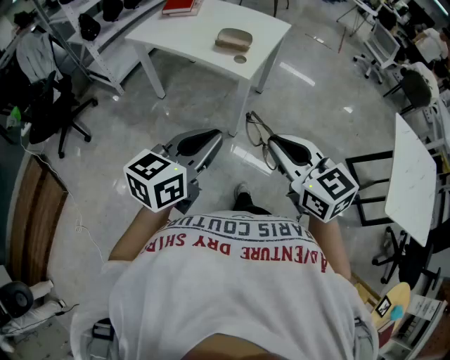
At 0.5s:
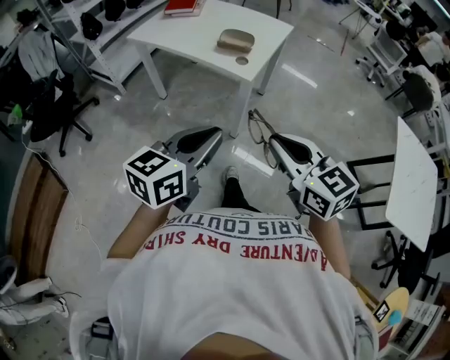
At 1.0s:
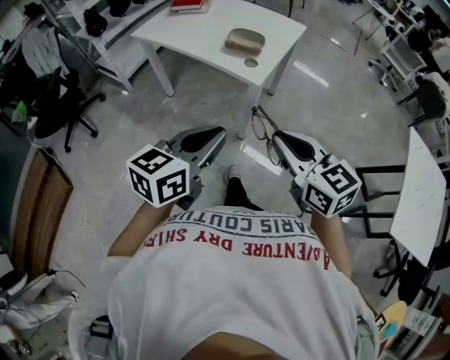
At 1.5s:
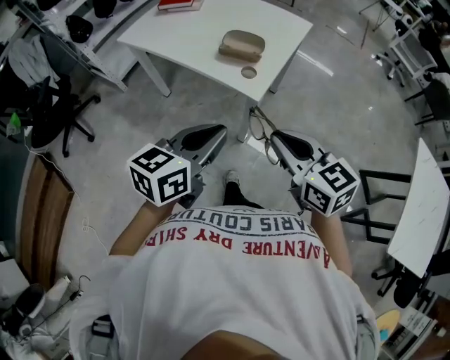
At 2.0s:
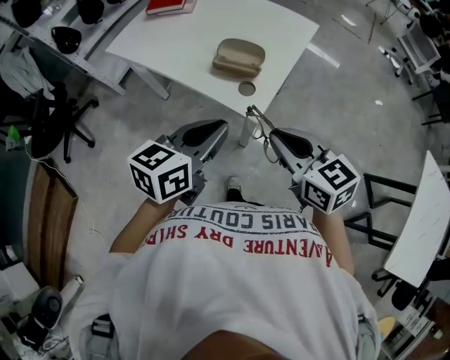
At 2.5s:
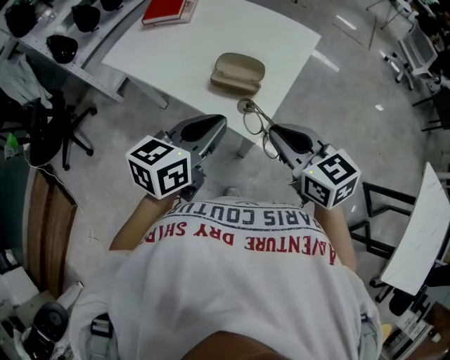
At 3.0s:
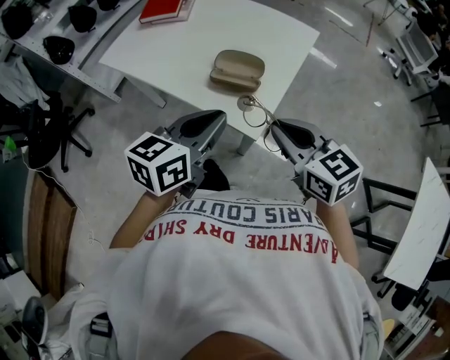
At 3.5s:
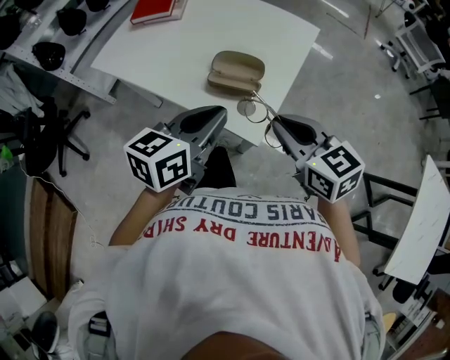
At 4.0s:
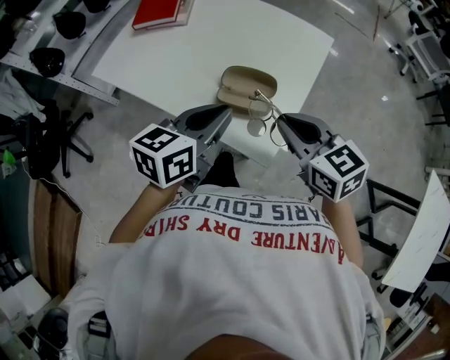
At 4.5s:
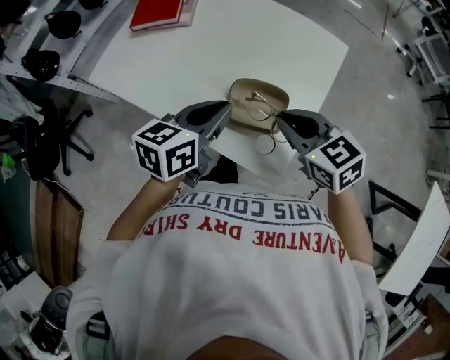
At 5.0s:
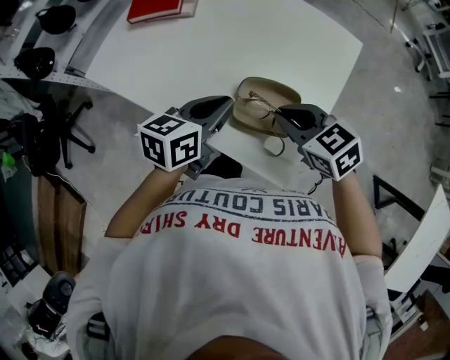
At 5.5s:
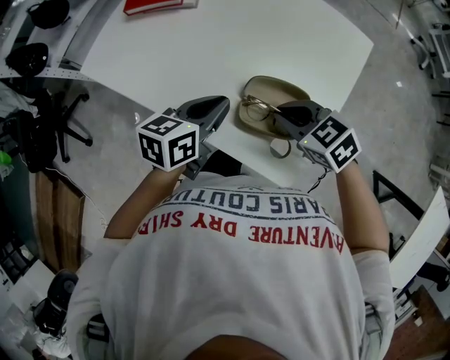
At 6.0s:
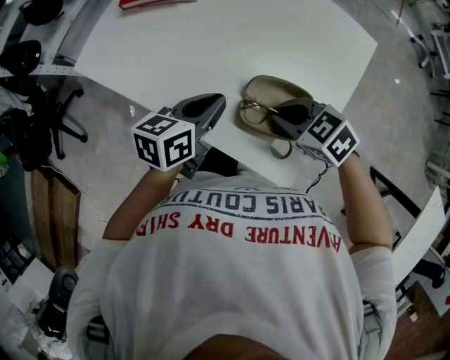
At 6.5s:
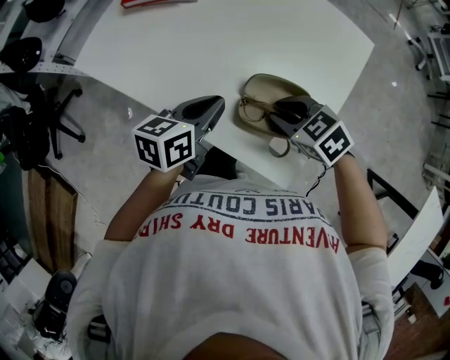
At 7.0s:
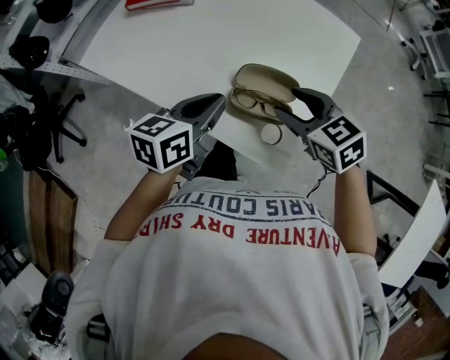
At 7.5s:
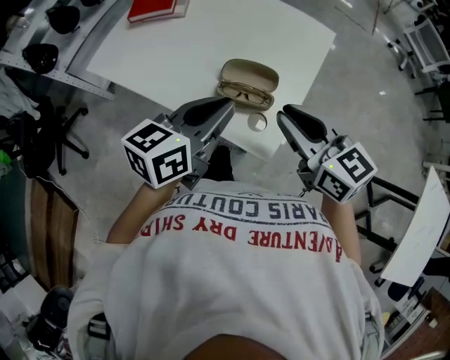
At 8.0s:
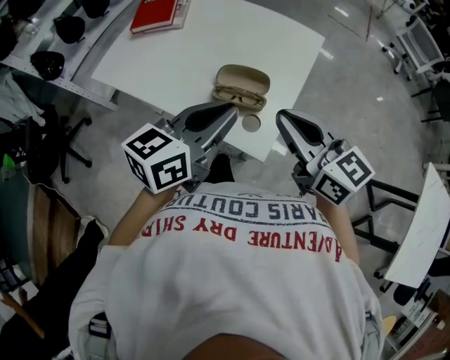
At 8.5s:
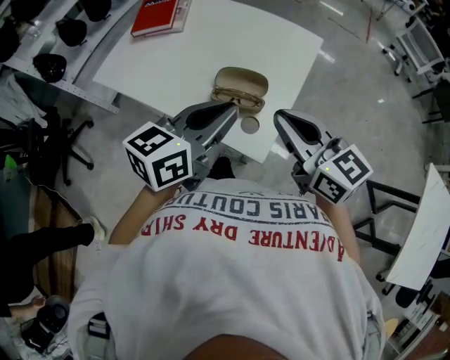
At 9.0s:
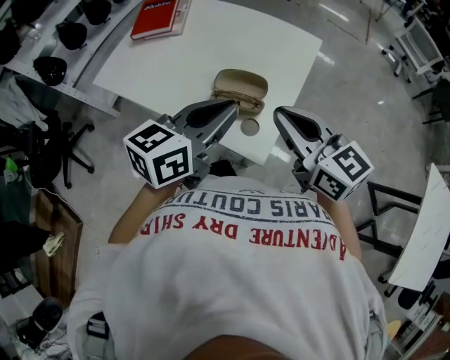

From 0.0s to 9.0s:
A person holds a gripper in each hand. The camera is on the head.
From 0.0s to 2.0s: The two grippers go about 30 cm forward.
From 2.0s to 4.5s: The two grippers go about 25 cm forward.
From 4.5s to 7.0s: The two grippers go some 5 cm downward. The right gripper opens its fingers.
From 7.0s to 9.0s: The left gripper is displaced upward, to the right and backward by roughly 20 cm, and turns by some 20 degrees; the right gripper is displaced upward and backward by roughly 20 cm, tips its fingers upward by approximately 30 degrees, and closes up.

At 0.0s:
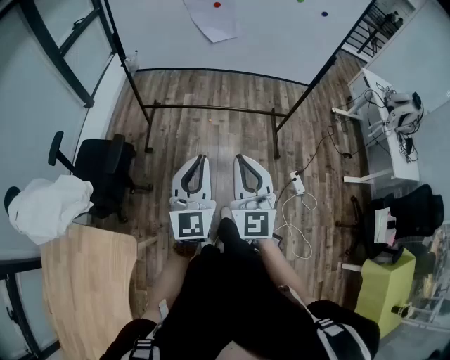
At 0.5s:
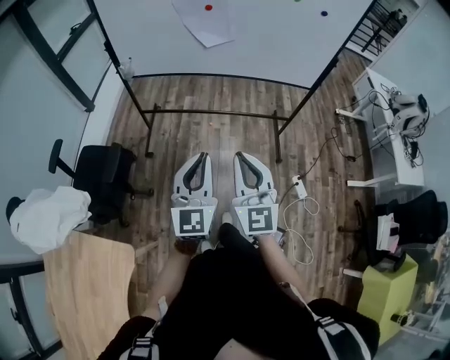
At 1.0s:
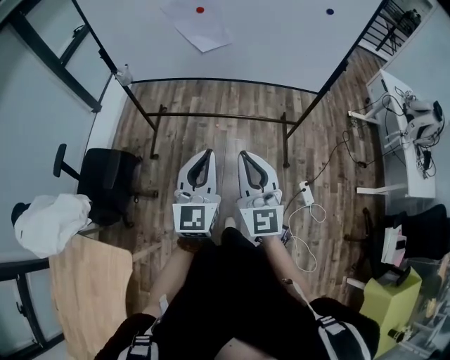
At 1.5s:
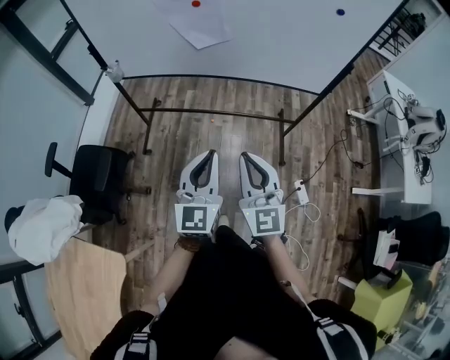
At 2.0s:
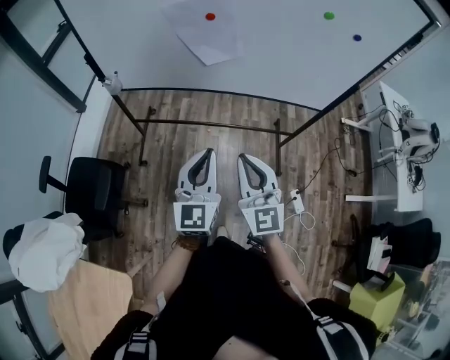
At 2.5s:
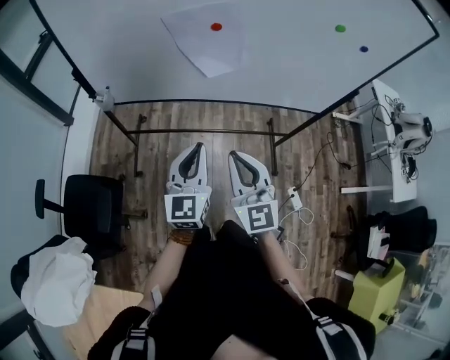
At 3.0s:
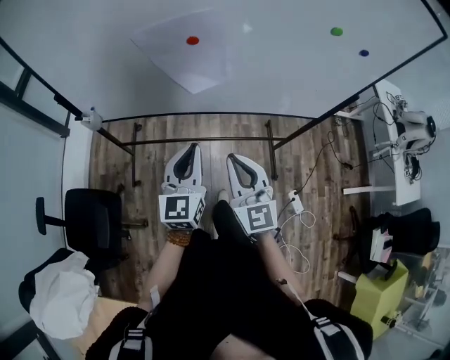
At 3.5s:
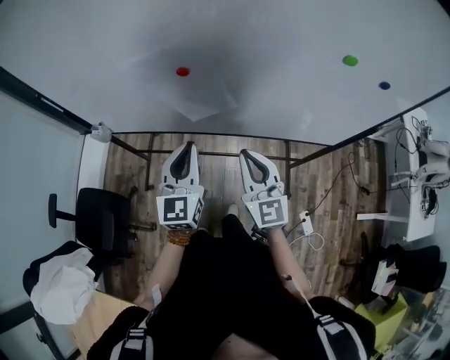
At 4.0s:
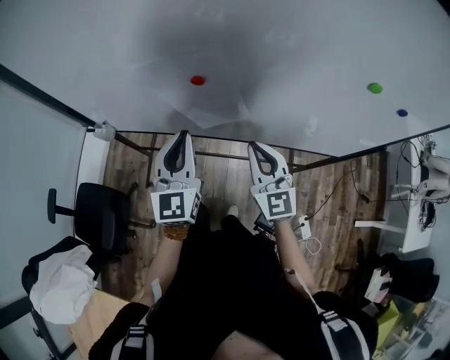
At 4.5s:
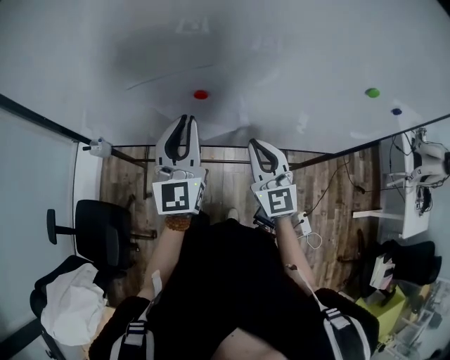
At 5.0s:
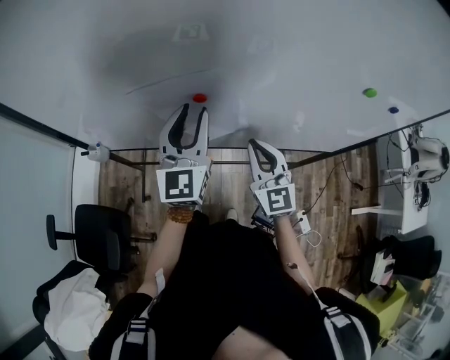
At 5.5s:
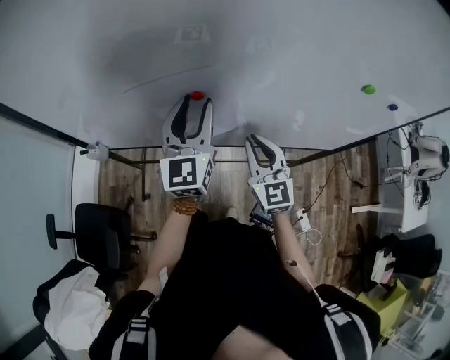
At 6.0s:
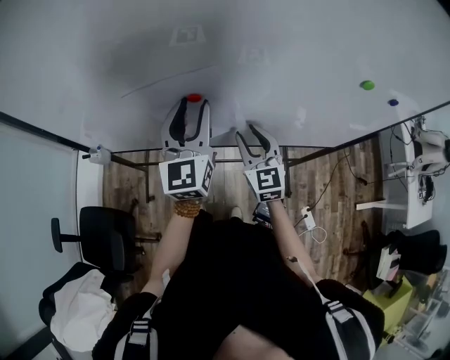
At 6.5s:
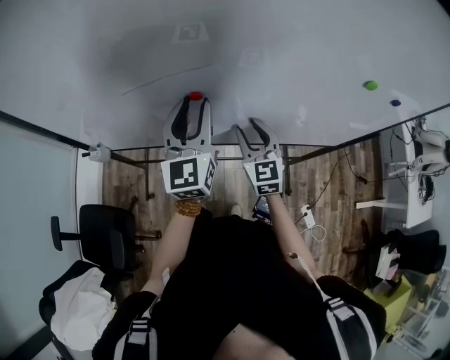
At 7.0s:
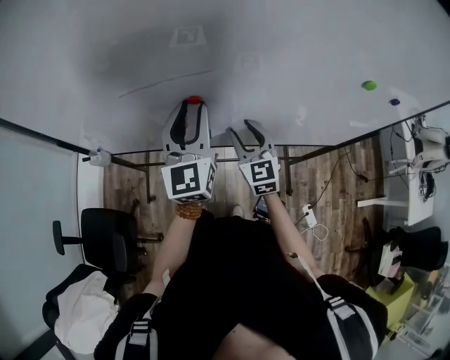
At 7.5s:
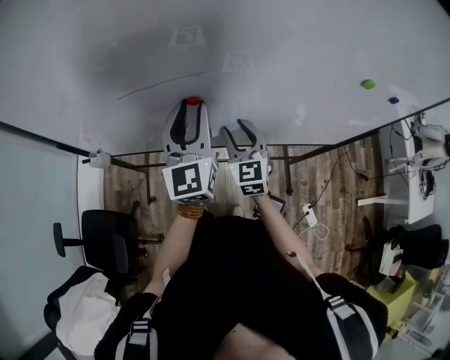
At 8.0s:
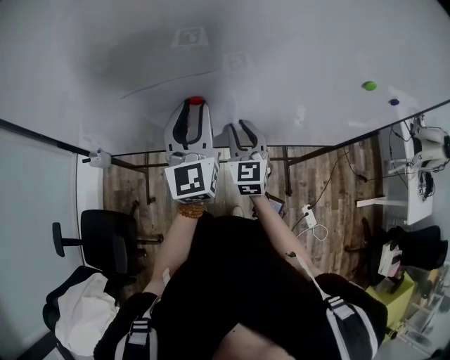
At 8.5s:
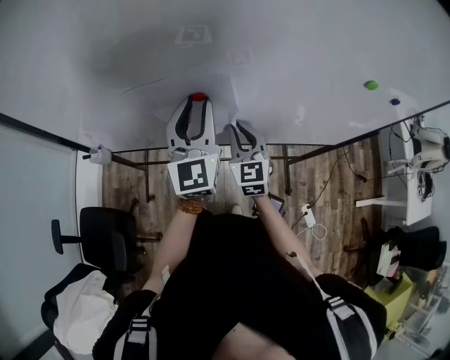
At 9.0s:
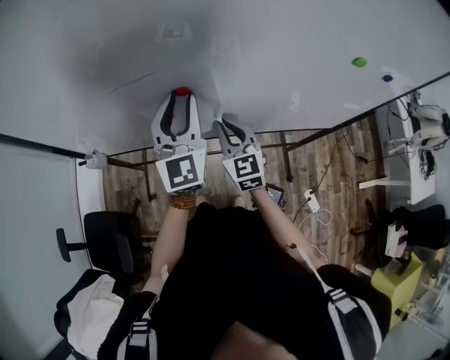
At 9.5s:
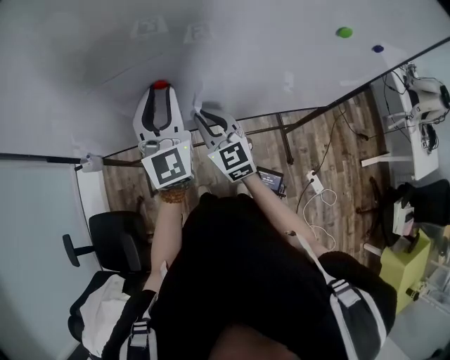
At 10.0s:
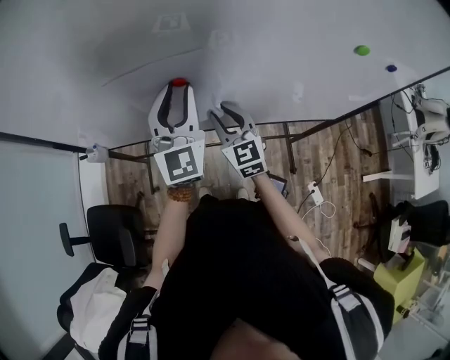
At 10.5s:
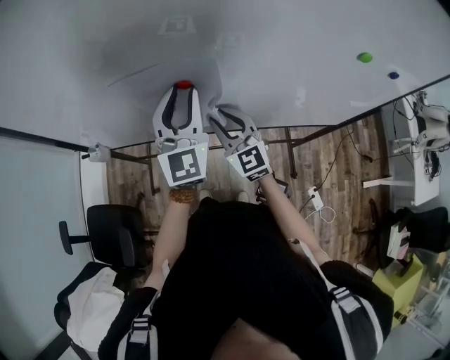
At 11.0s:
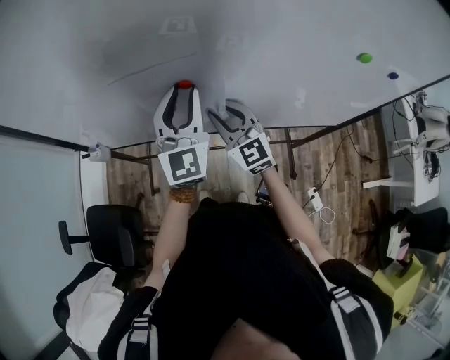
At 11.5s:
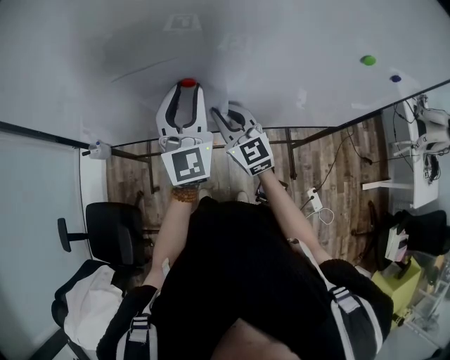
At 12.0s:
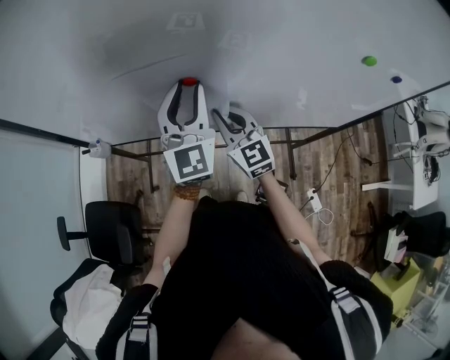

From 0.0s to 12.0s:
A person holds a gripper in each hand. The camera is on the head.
From 0.0s to 2.0s: Both grippers travel together forward, roughly 25 cm.
From 2.0s to 4.0s: Both grippers move forward, some 30 cm.
From 4.0s to 6.0s: The two grippers go some 10 cm forward. The left gripper opens; the right gripper opens up.
From 6.0s to 8.0s: The grippers make only small movements.
From 8.0s to 10.0s: The grippers move only a little.
From 10.0s to 12.0s: The right gripper closes.

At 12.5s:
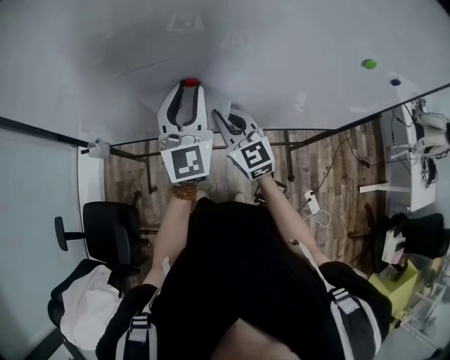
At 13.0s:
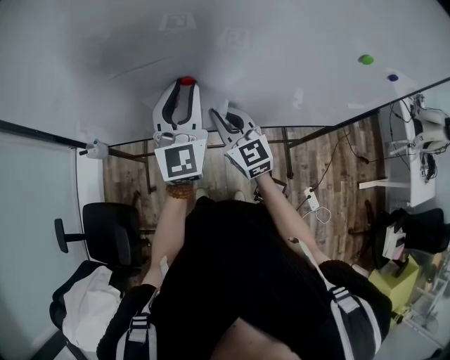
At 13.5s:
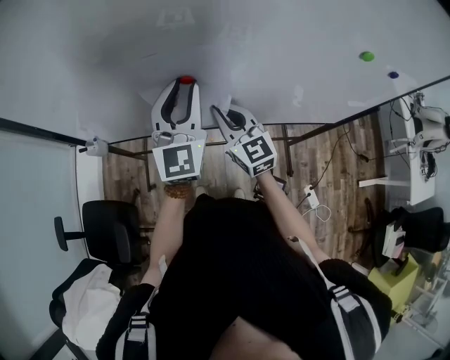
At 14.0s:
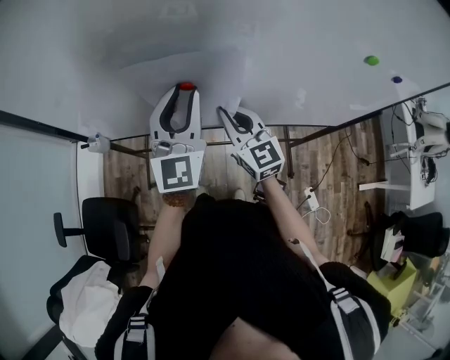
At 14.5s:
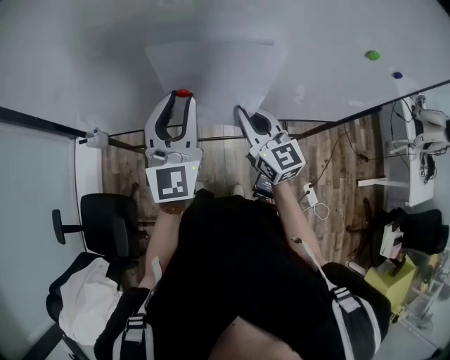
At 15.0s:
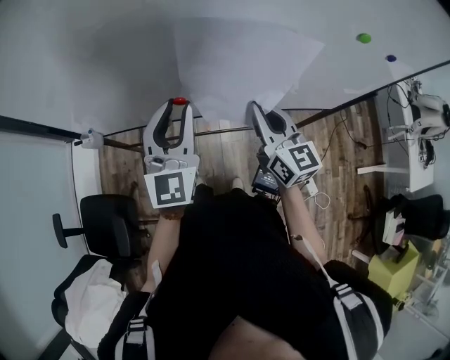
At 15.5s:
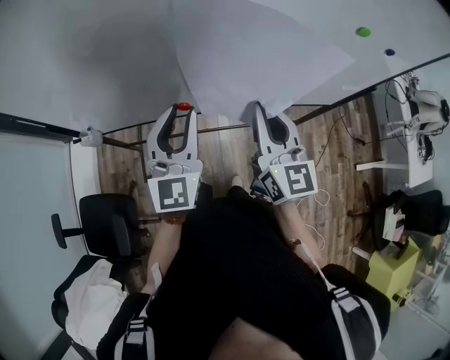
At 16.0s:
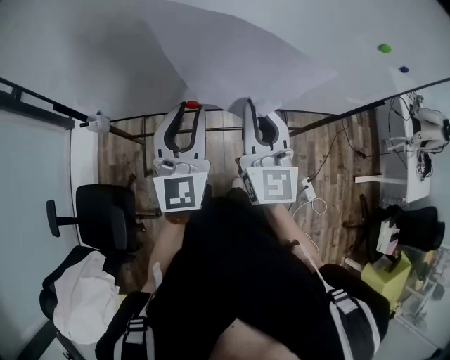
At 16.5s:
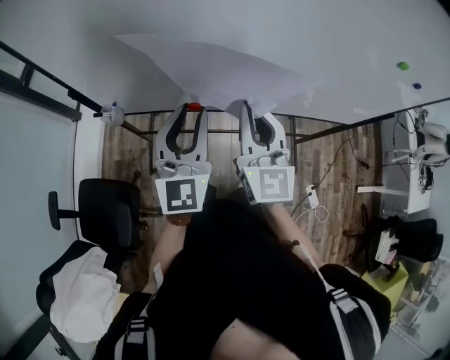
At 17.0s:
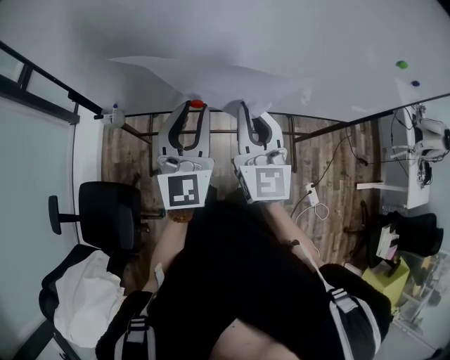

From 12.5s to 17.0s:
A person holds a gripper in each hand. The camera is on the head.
From 12.5s to 14.5s: The right gripper ends up roughly 5 cm from where it was. The left gripper is displaced backward by some 5 cm.
From 14.5s to 17.0s: The right gripper travels to the left, upward and backward by roughly 15 cm, and rotates approximately 20 degrees. Meanwhile the left gripper travels to the left and backward by roughly 10 cm.

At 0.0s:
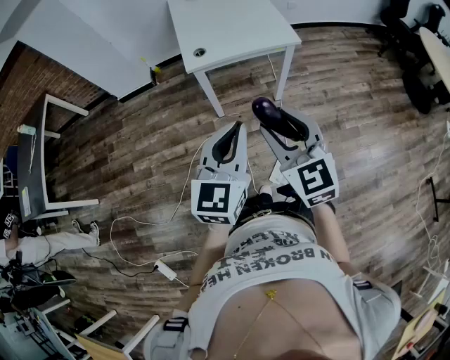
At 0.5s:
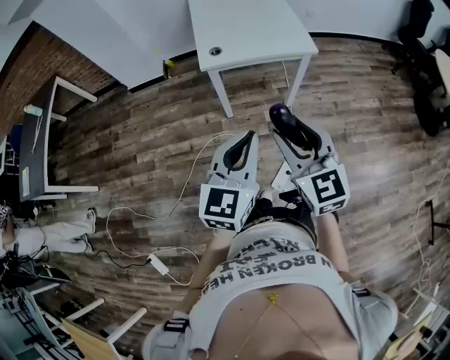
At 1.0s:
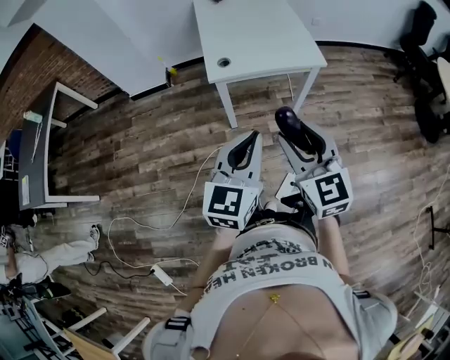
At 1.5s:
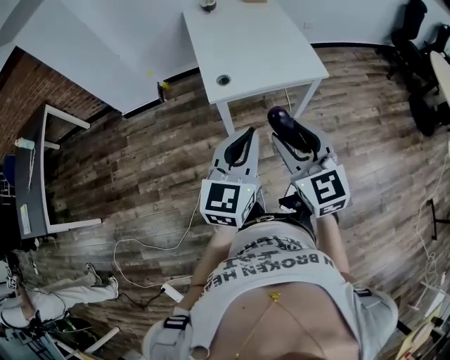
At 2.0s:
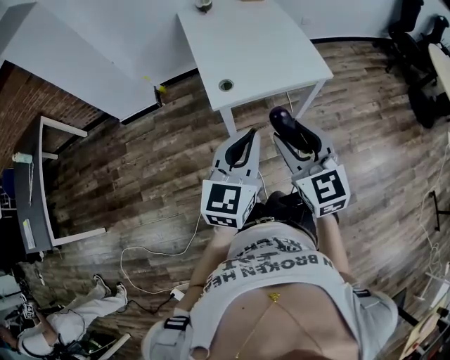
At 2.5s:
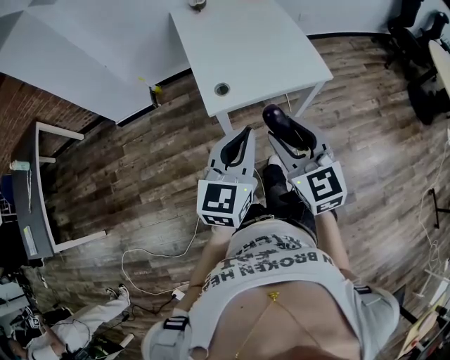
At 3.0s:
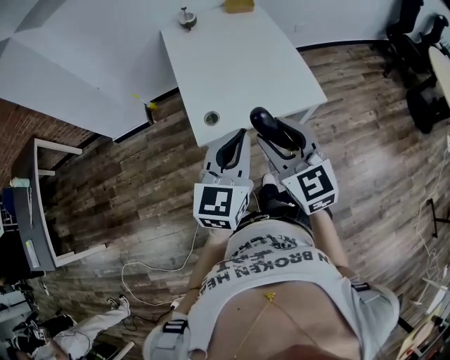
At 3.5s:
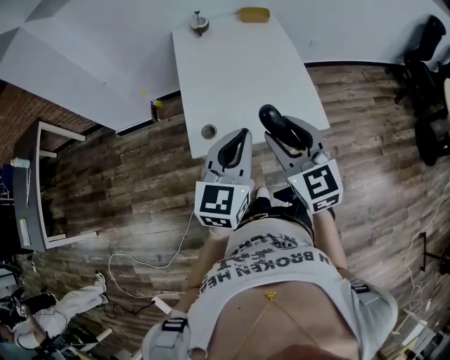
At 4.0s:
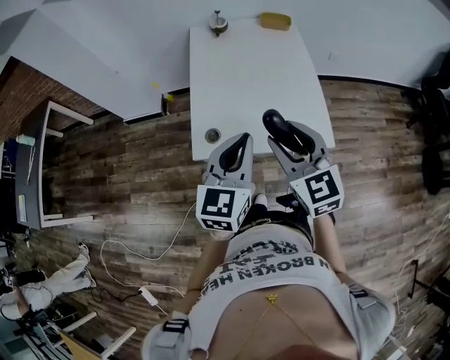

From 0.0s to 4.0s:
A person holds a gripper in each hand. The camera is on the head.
From 0.0s to 2.0s: The grippers both shift forward and to the left by approximately 25 cm.
From 2.0s to 4.0s: The two grippers go some 30 cm forward and to the right.
